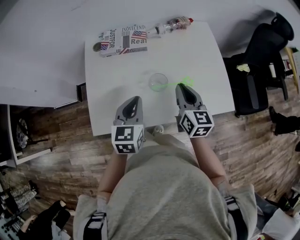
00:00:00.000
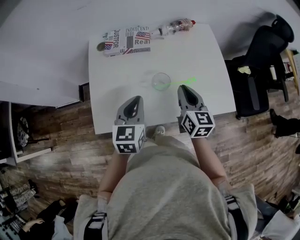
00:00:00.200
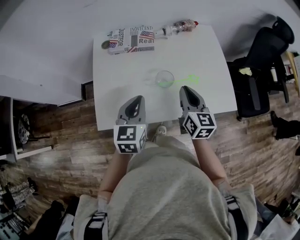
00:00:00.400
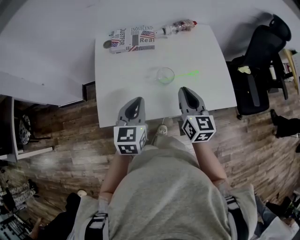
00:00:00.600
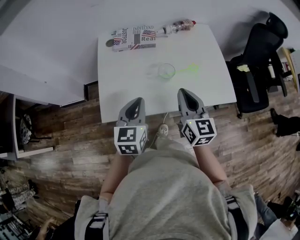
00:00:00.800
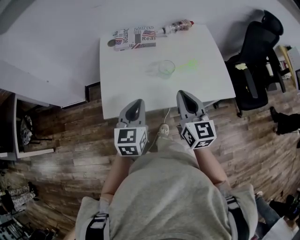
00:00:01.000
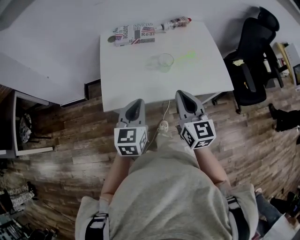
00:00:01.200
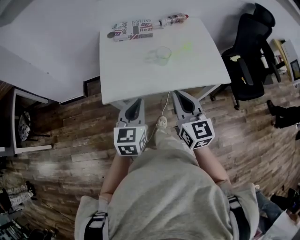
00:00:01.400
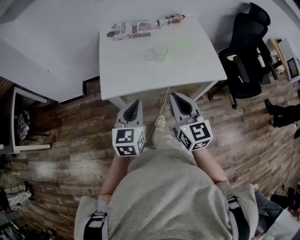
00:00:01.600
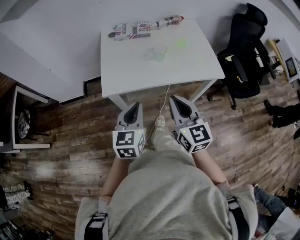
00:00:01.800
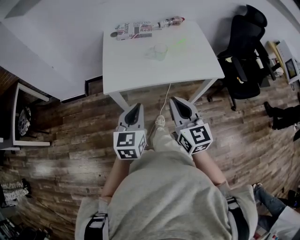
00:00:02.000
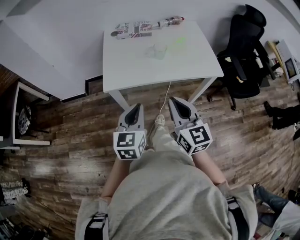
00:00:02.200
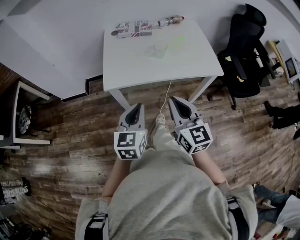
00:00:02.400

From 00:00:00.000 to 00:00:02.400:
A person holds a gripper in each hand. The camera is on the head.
From 00:00:00.000 to 00:00:01.200: The left gripper travels backward by some 15 cm; the right gripper shifts approximately 20 cm backward and upward.
From 00:00:01.200 to 00:00:02.400: Both grippers travel together backward, approximately 20 cm.

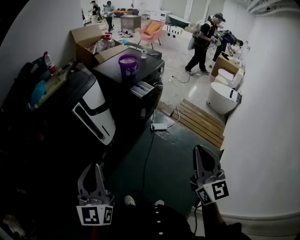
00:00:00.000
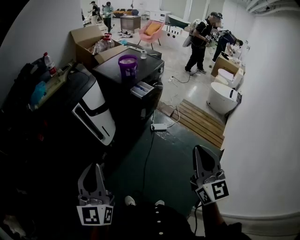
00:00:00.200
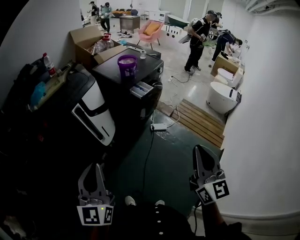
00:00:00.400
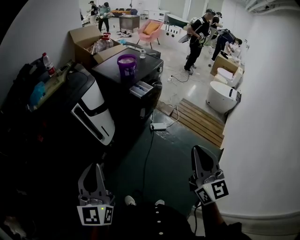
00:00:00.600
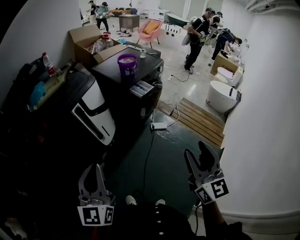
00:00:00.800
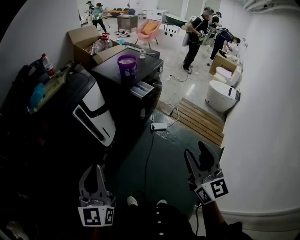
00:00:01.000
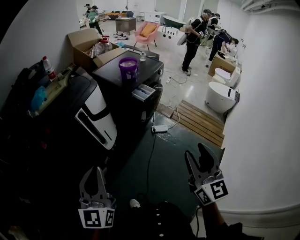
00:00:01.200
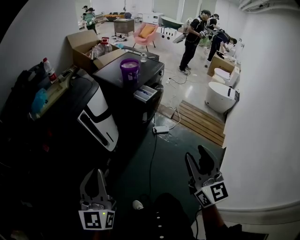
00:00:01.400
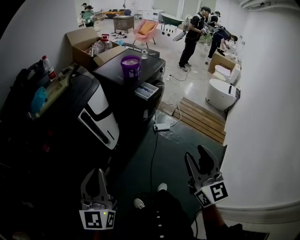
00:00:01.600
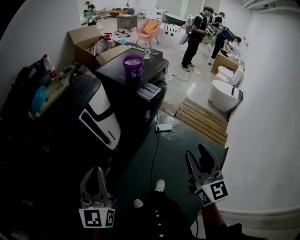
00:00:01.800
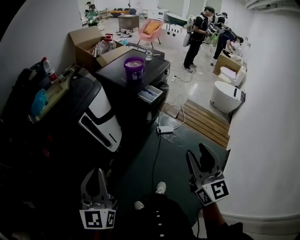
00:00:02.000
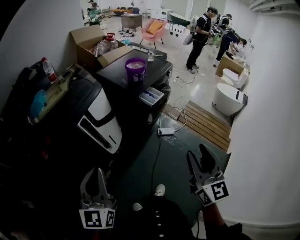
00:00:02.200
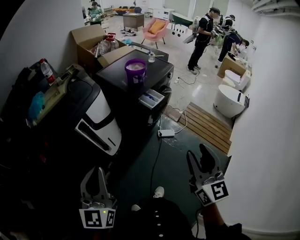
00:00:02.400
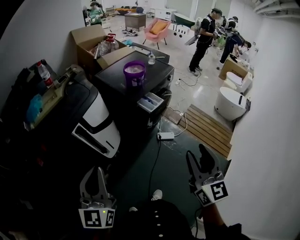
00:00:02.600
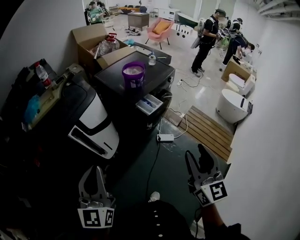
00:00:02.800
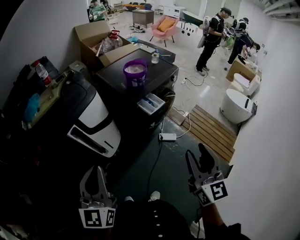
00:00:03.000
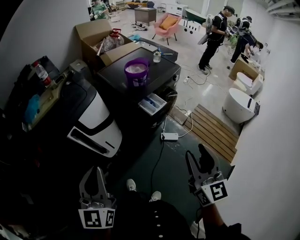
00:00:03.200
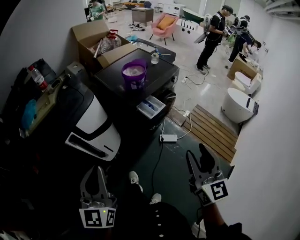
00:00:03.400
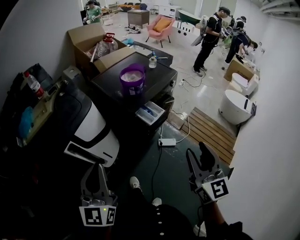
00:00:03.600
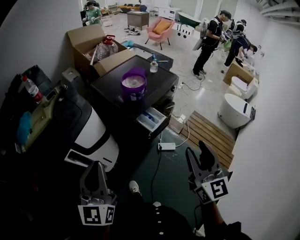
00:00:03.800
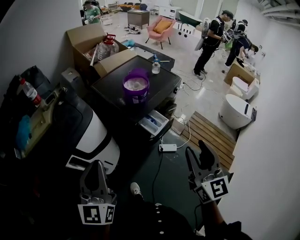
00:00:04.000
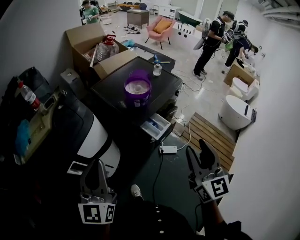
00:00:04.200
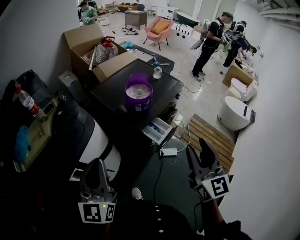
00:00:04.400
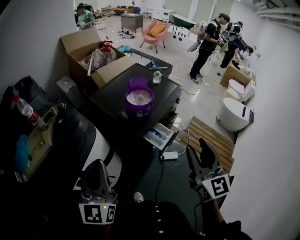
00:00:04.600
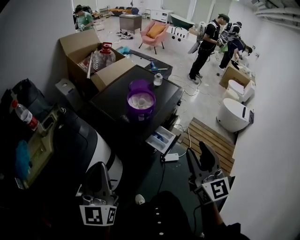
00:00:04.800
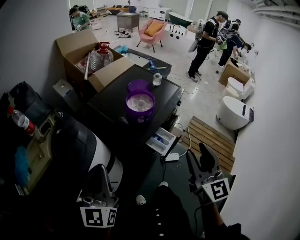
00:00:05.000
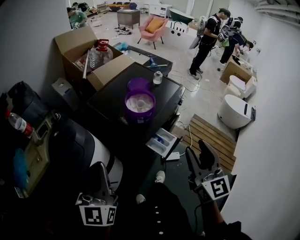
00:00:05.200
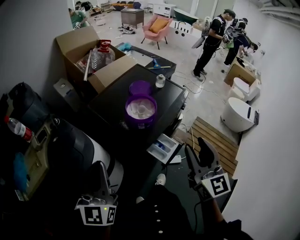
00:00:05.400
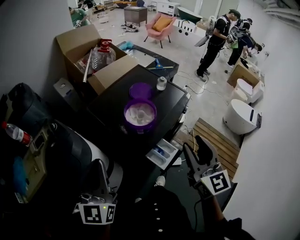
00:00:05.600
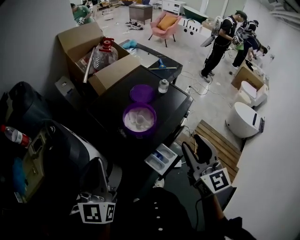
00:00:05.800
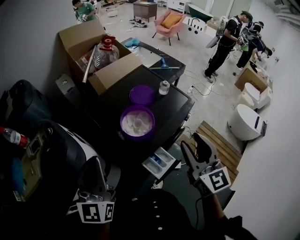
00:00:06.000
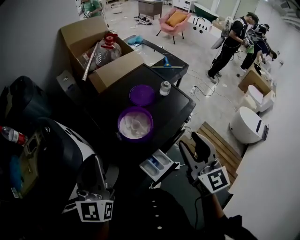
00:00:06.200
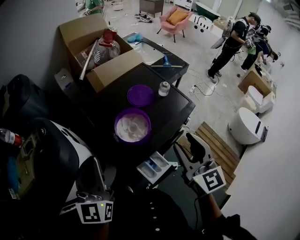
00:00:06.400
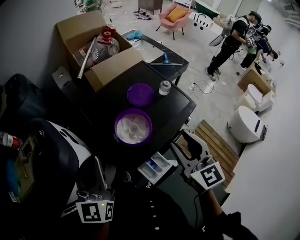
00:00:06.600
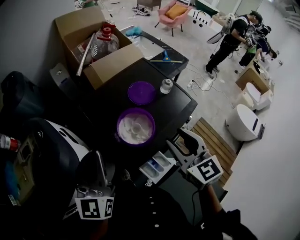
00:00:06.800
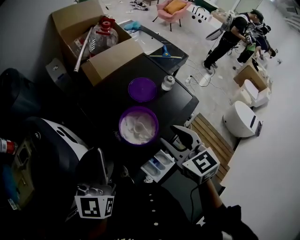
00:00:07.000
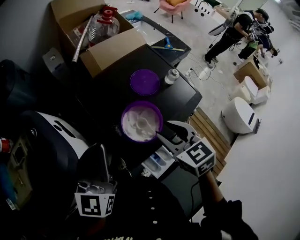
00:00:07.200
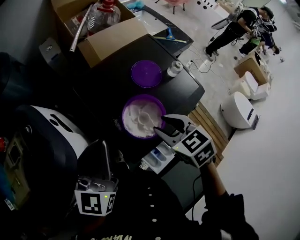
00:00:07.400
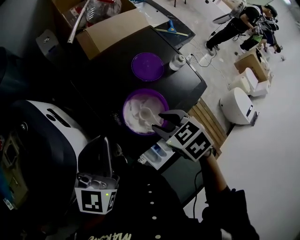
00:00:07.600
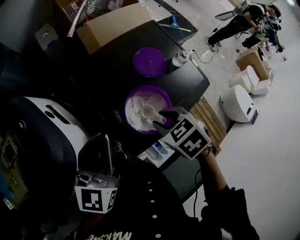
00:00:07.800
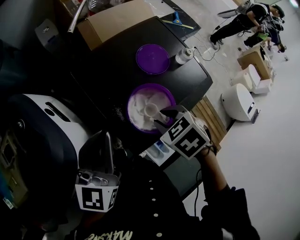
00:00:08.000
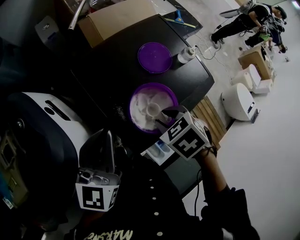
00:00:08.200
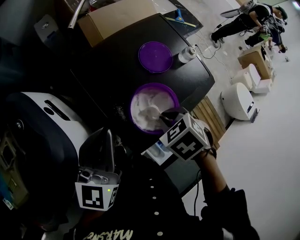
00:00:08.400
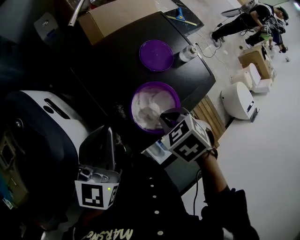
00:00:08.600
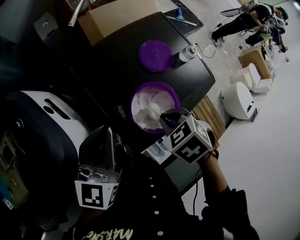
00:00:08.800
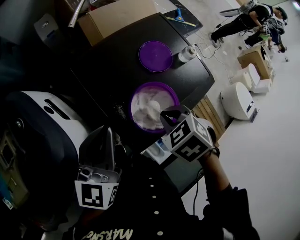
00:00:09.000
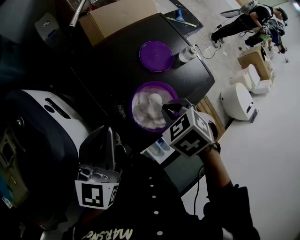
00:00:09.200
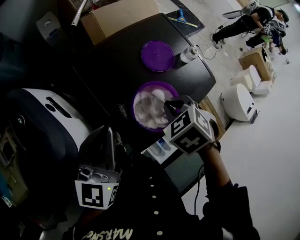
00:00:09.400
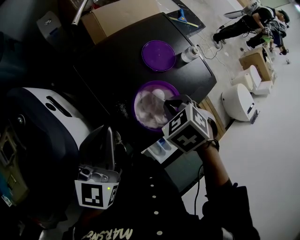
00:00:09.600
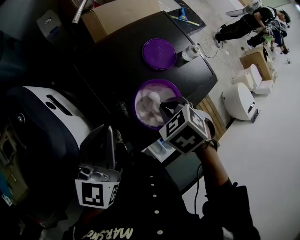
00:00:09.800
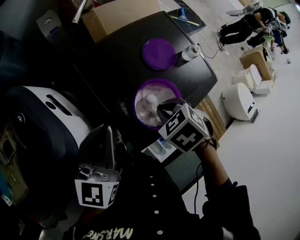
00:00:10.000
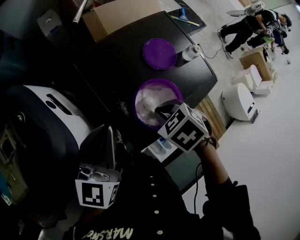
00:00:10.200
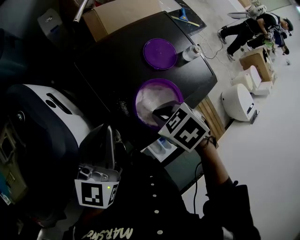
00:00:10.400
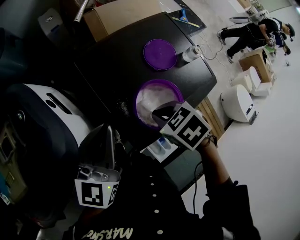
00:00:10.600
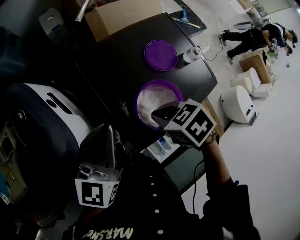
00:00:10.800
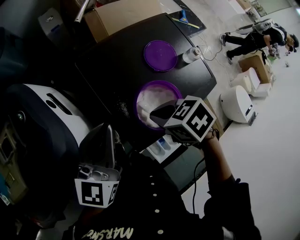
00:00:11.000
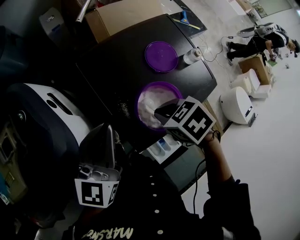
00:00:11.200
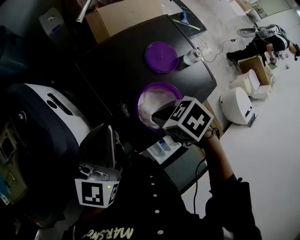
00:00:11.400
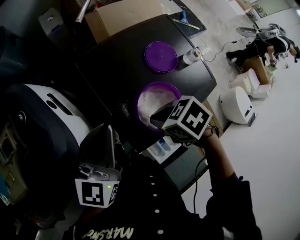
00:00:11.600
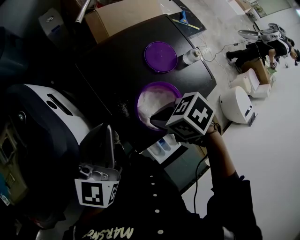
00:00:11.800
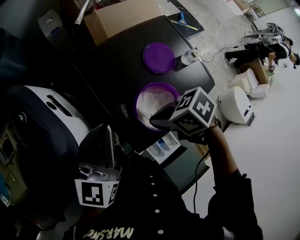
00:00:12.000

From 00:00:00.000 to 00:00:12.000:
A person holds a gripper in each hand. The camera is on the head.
From 00:00:00.000 to 00:00:01.600: Both grippers travel together to the left, about 10 cm. The right gripper opens up.
From 00:00:01.600 to 00:00:03.000: The two grippers go approximately 20 cm forward and to the right.
From 00:00:03.000 to 00:00:04.400: Both grippers move forward, roughly 25 cm.
From 00:00:04.400 to 00:00:06.000: The two grippers go roughly 25 cm forward.
From 00:00:06.000 to 00:00:07.600: The right gripper shifts approximately 25 cm downward, forward and to the left, and tips its fingers downward by roughly 60 degrees; the left gripper moves forward and downward, about 15 cm.
From 00:00:07.600 to 00:00:09.000: The right gripper closes.
From 00:00:09.000 to 00:00:10.400: The grippers move only a little.
From 00:00:10.400 to 00:00:12.000: The right gripper rotates approximately 30 degrees.

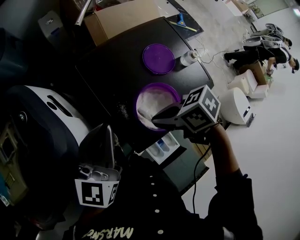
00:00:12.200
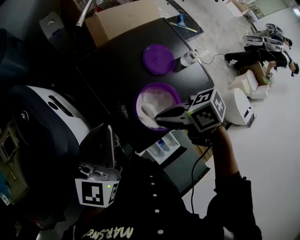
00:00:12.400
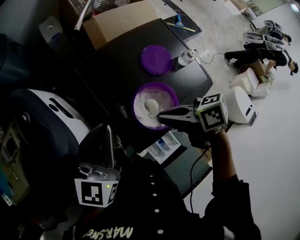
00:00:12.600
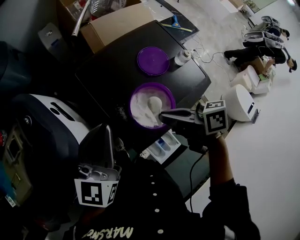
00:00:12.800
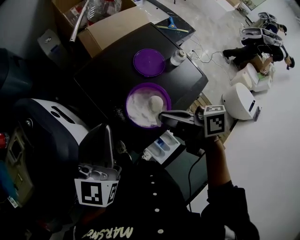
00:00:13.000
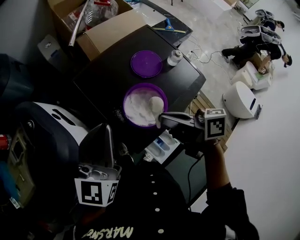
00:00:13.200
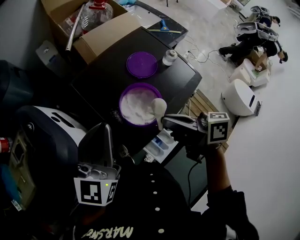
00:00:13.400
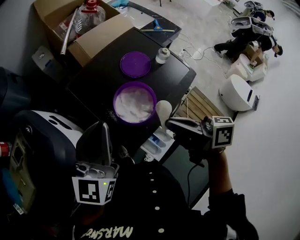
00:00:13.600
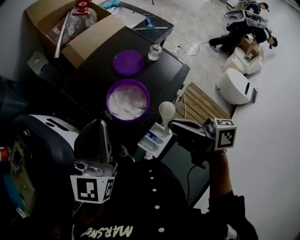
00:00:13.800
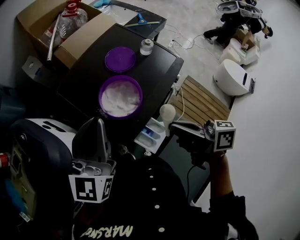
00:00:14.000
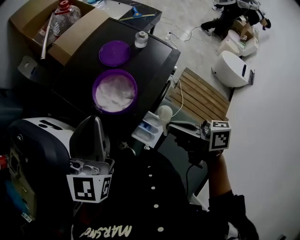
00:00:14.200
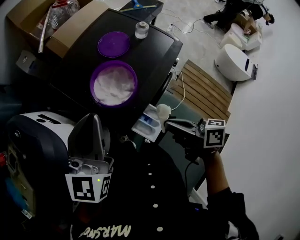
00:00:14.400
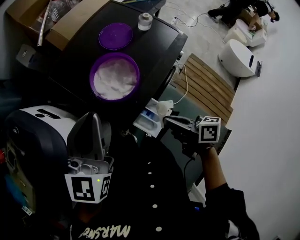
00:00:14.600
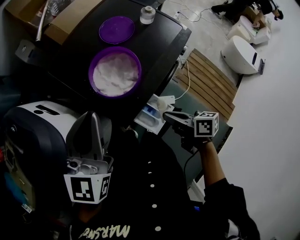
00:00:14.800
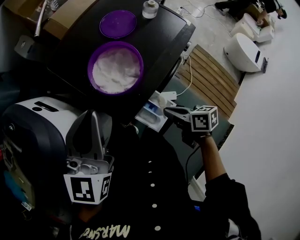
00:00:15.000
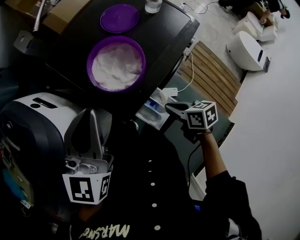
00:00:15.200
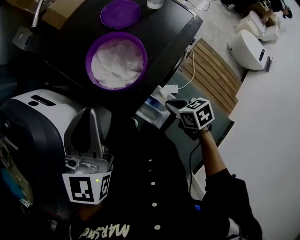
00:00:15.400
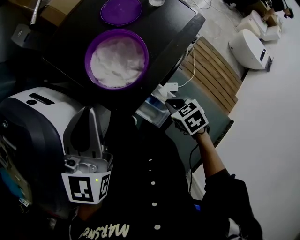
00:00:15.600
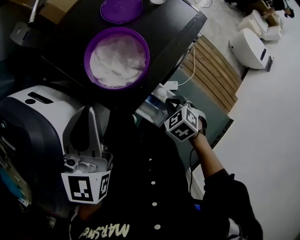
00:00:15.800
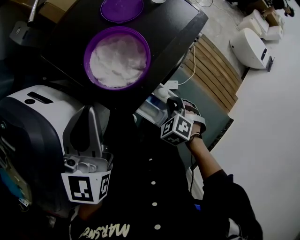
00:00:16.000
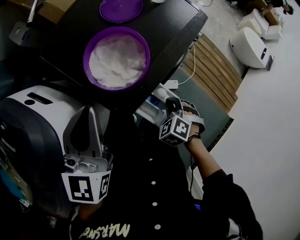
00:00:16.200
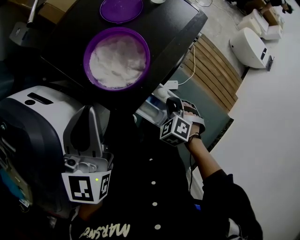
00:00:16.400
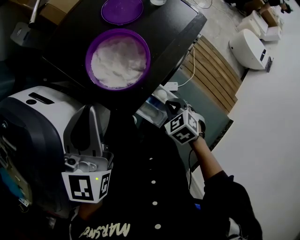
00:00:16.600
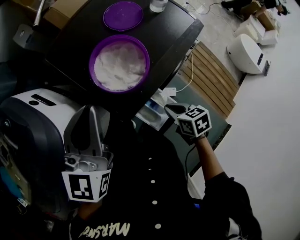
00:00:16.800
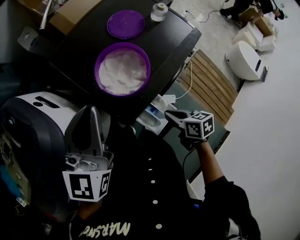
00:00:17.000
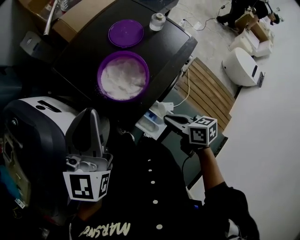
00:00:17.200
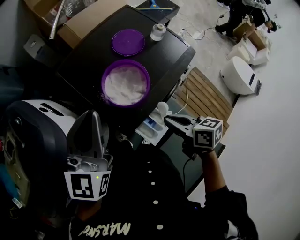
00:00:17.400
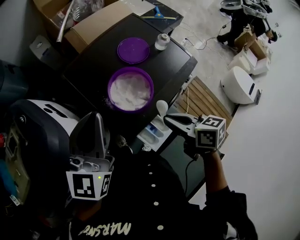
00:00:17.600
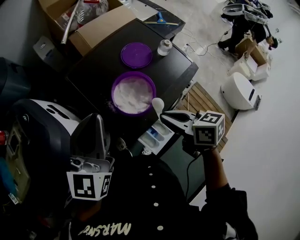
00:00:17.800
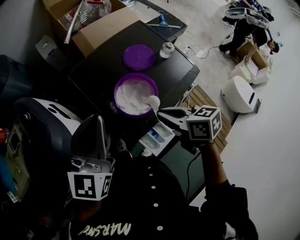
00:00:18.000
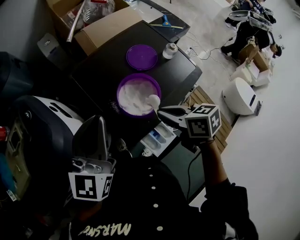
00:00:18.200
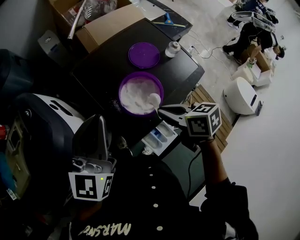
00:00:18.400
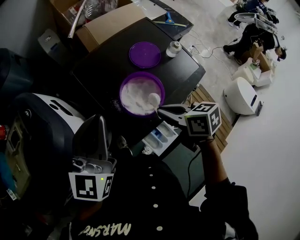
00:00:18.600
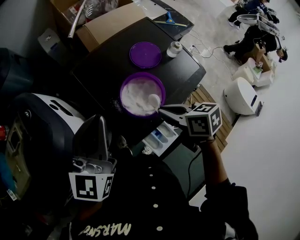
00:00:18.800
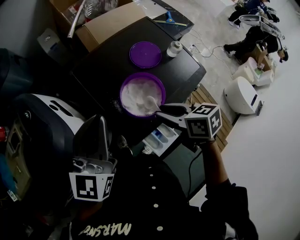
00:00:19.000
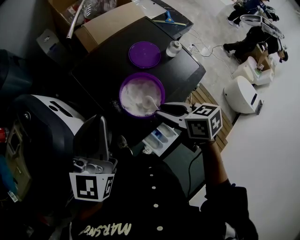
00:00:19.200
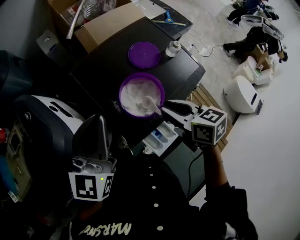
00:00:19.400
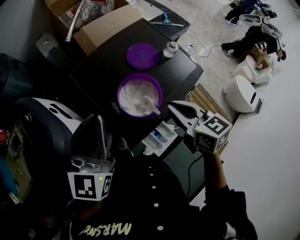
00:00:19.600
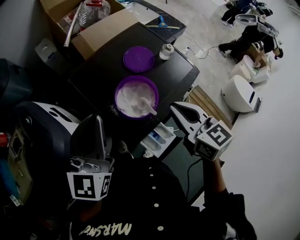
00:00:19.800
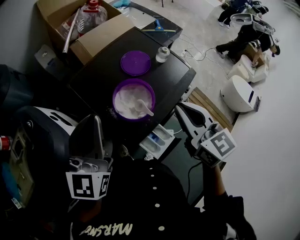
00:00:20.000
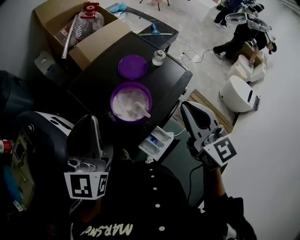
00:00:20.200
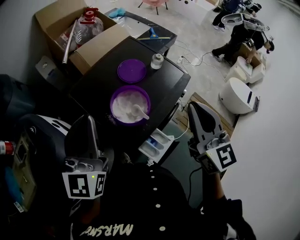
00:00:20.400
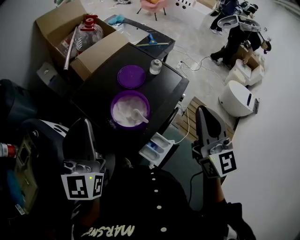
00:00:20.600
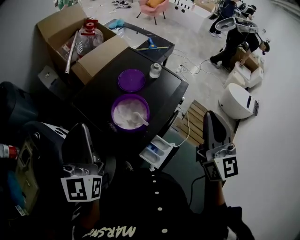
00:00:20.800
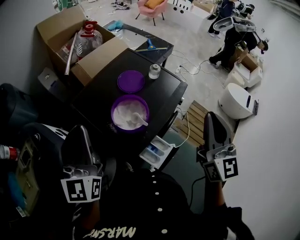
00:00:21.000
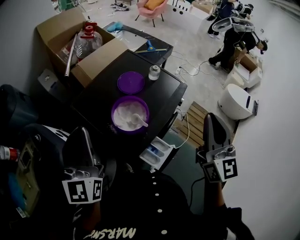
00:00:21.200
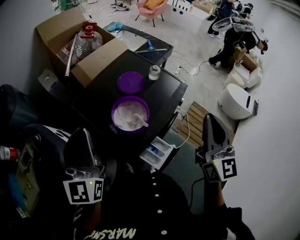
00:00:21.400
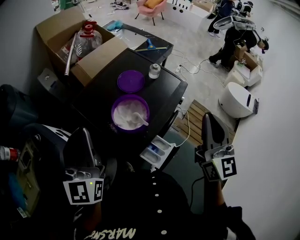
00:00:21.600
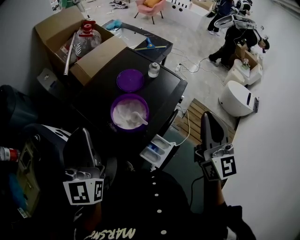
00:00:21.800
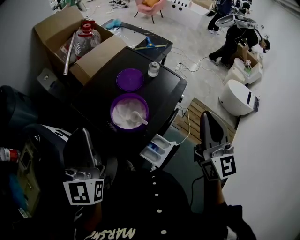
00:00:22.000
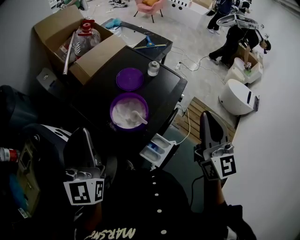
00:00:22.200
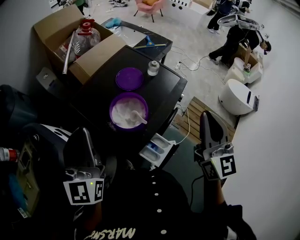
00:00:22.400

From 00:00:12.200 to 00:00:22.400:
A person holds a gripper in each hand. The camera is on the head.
From 00:00:12.200 to 00:00:13.600: The left gripper shifts approximately 5 cm upward; the right gripper shifts about 10 cm upward, and tips its fingers upward by roughly 40 degrees.
From 00:00:13.600 to 00:00:15.200: The left gripper heads downward, covering approximately 5 cm, while the right gripper heads downward, covering roughly 25 cm, and tilts its fingers approximately 40 degrees downward.
From 00:00:15.200 to 00:00:16.600: The right gripper rotates around the line of its fingers by about 40 degrees, counterclockwise from behind.
From 00:00:16.600 to 00:00:18.000: The left gripper travels upward by about 10 cm. Meanwhile the right gripper is displaced upward and forward by some 25 cm, and tips its fingers upward by about 40 degrees.
From 00:00:18.000 to 00:00:19.400: The right gripper opens up.
From 00:00:19.400 to 00:00:21.000: The left gripper is displaced upward by approximately 5 cm; the right gripper heads upward, to the right and backward, covering about 25 cm, tilts its fingers some 40 degrees upward, and closes.
From 00:00:21.000 to 00:00:22.400: The grippers stay close to where they were, moving slightly.
